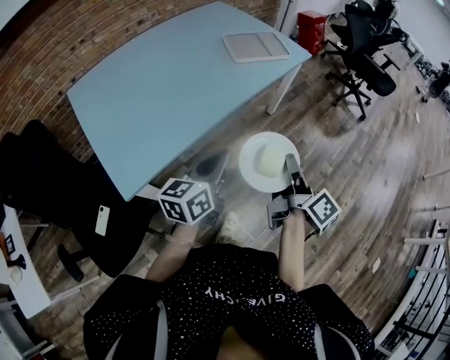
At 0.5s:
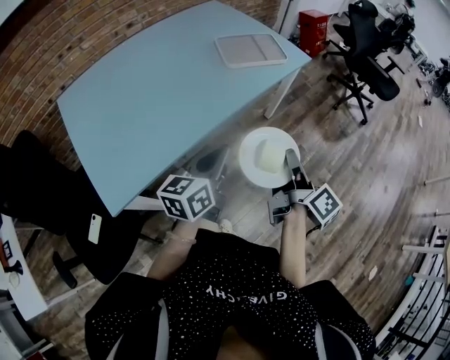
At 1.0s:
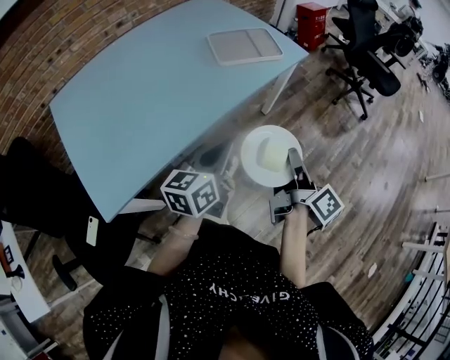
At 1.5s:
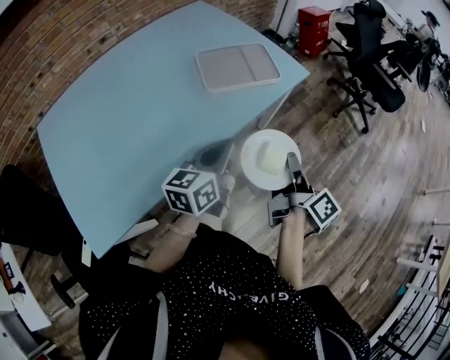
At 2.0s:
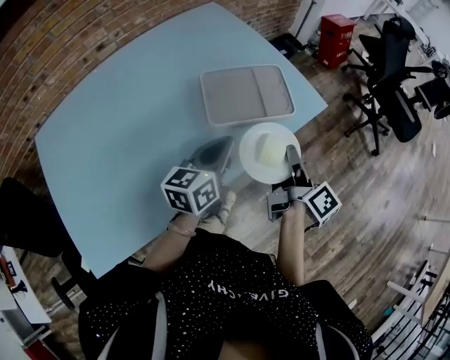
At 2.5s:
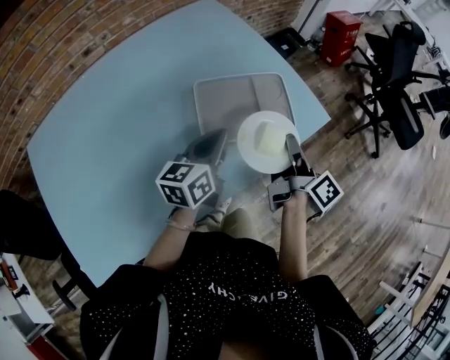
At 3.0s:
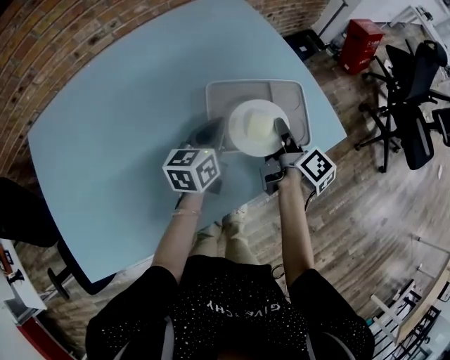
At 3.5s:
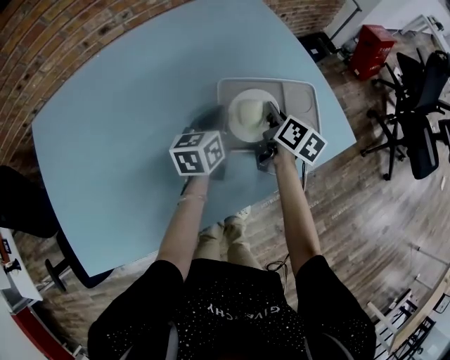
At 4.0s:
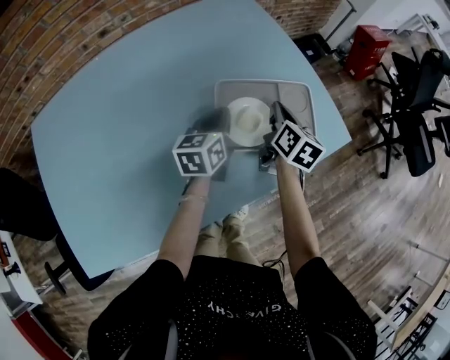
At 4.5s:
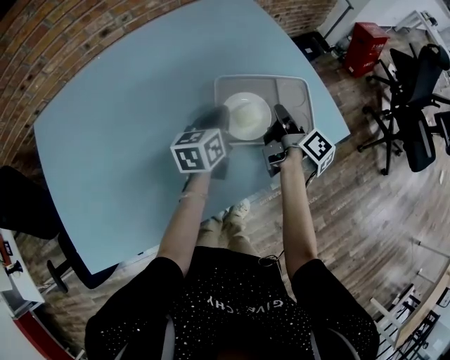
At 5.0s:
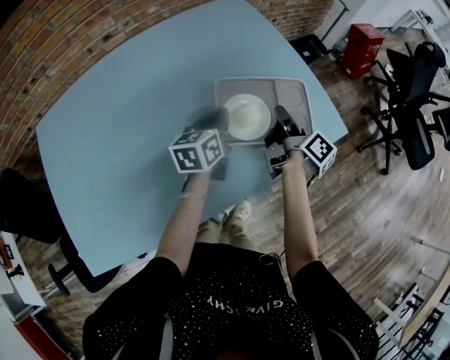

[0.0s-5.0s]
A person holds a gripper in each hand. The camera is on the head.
0.0s to 2.5s: The two grippers travel together, forward, about 60 cm.
2.5s to 5.0s: The right gripper is displaced forward and to the left by some 15 cm. The left gripper is displaced forward, to the left and downward by approximately 10 cm.

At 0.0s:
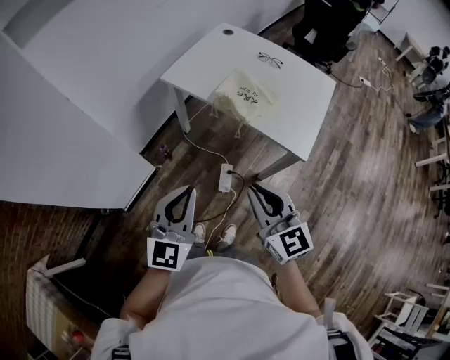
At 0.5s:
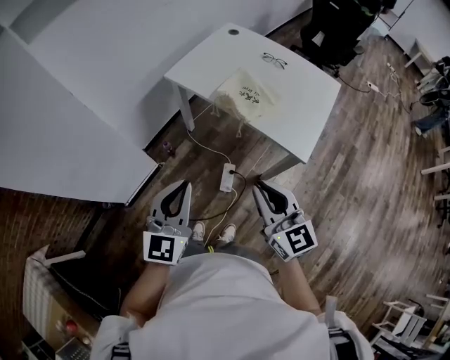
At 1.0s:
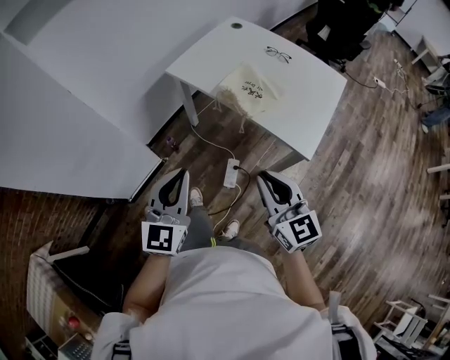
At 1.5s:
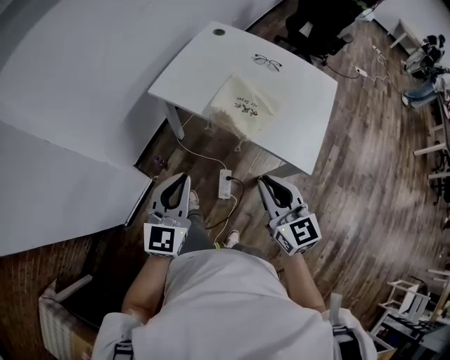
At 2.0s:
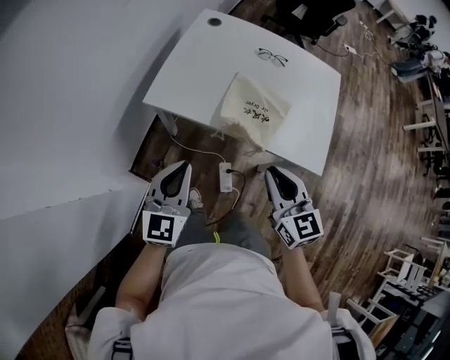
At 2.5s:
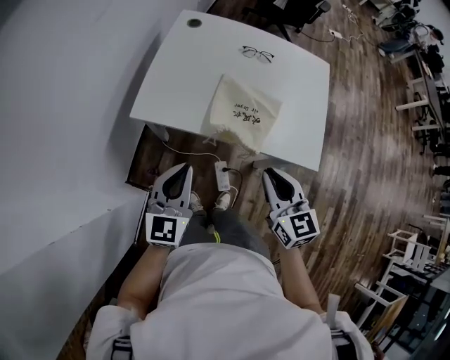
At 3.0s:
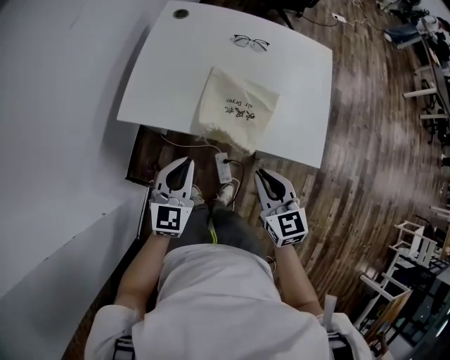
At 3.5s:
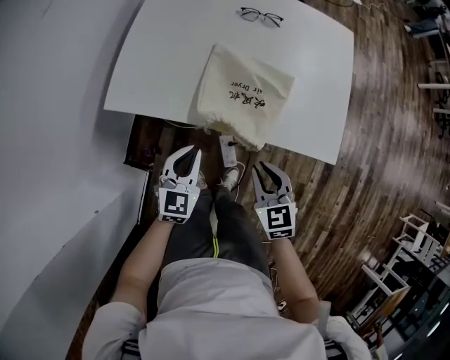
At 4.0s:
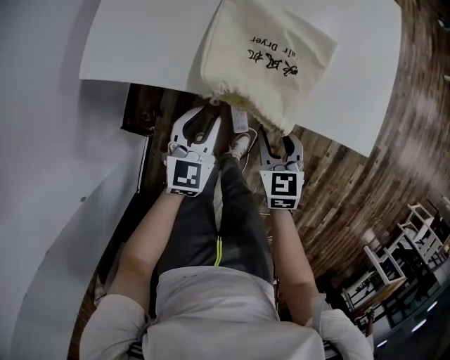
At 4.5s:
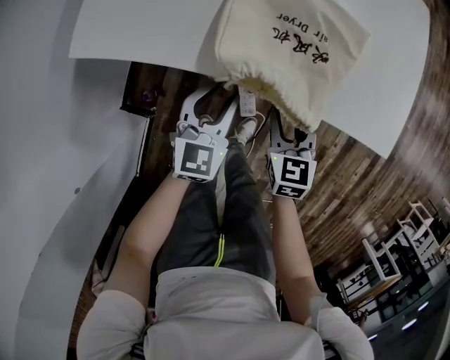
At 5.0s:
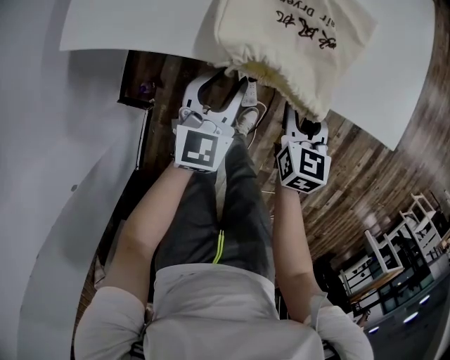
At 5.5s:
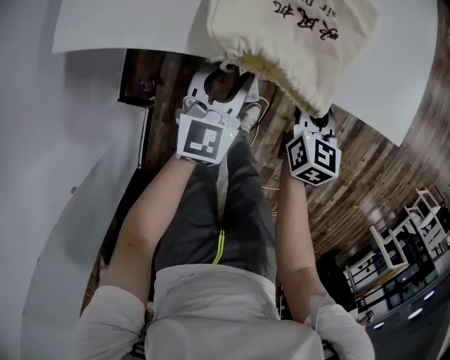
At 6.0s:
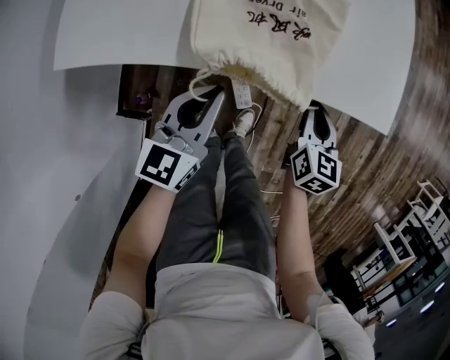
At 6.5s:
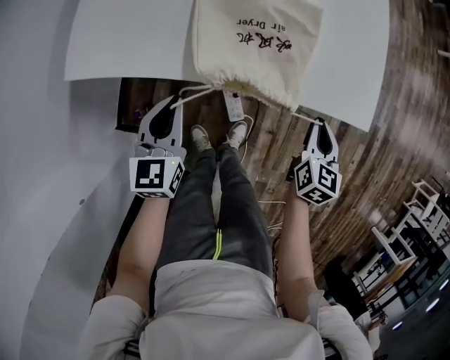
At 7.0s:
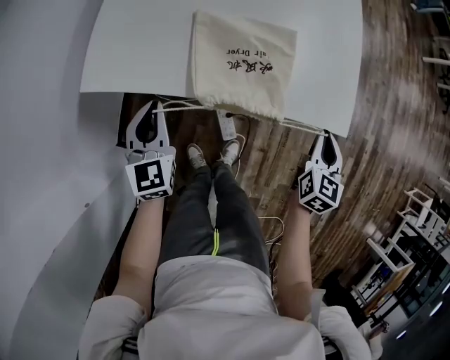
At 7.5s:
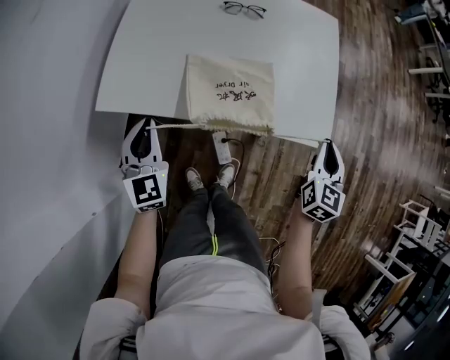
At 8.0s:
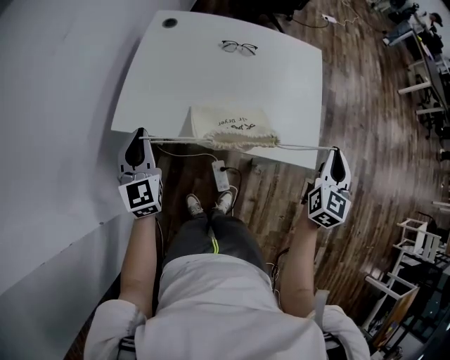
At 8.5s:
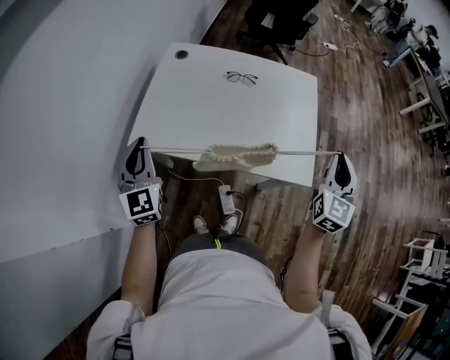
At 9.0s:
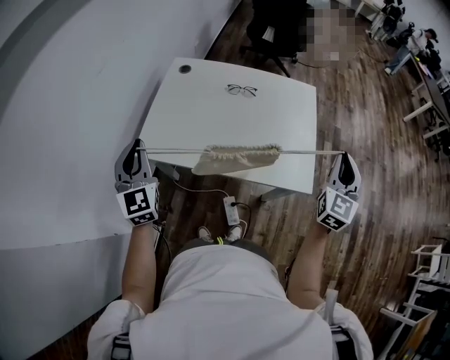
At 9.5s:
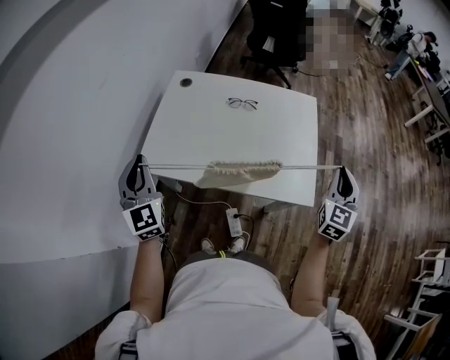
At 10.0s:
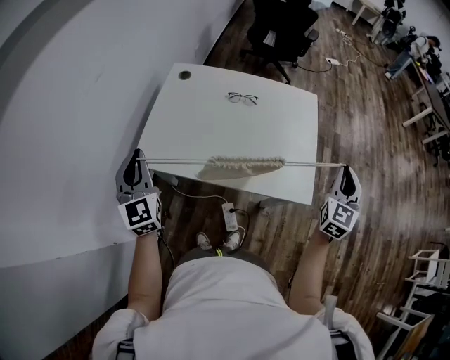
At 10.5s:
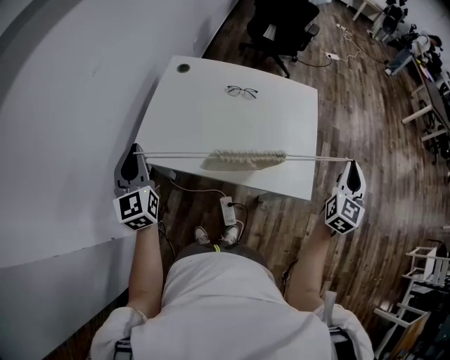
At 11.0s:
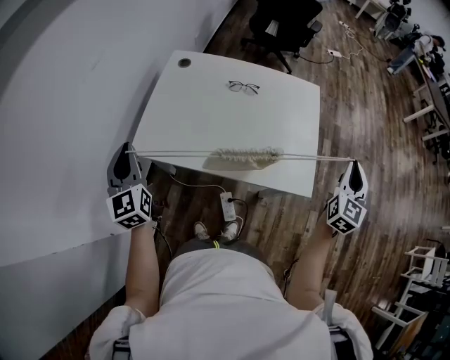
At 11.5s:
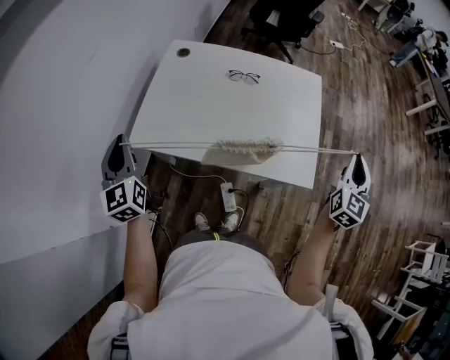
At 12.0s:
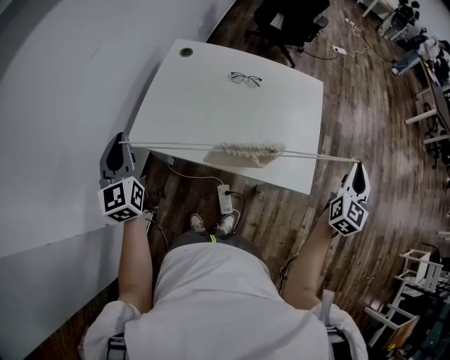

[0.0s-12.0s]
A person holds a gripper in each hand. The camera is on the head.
0.0s to 2.0s: The two grippers go approximately 30 cm forward. The right gripper changes its angle by roughly 20 degrees.
2.0s to 4.0s: The right gripper heads downward, covering approximately 35 cm, swivels some 30 degrees, and opens up, while the left gripper heads downward and forward, covering about 35 cm, swivels approximately 20 degrees, and opens.
4.0s to 6.0s: The right gripper shifts roughly 10 cm to the right, turns by roughly 30 degrees, and closes. Meanwhile the left gripper changes its angle by some 20 degrees, and closes its fingers.
6.0s to 8.0s: The right gripper heads upward, covering approximately 35 cm, and rotates about 30 degrees. The left gripper is displaced upward and to the left by roughly 30 cm, and swivels roughly 50 degrees.
8.0s to 10.0s: The left gripper shifts some 15 cm upward; the right gripper heads upward and to the right, covering about 10 cm.
10.0s to 12.0s: The grippers stay close to where they were, moving slightly.

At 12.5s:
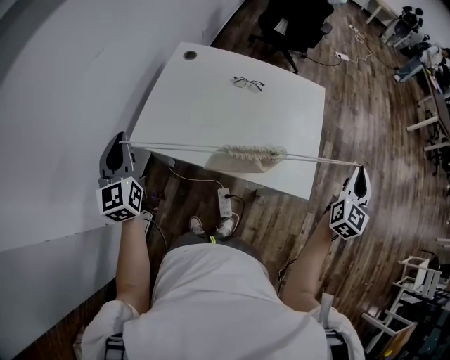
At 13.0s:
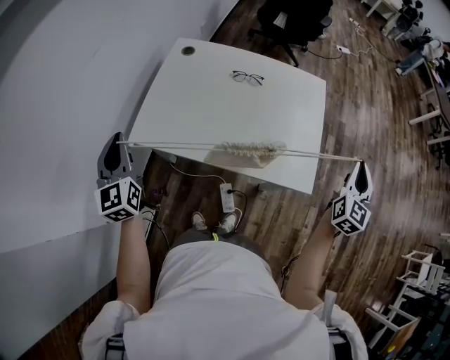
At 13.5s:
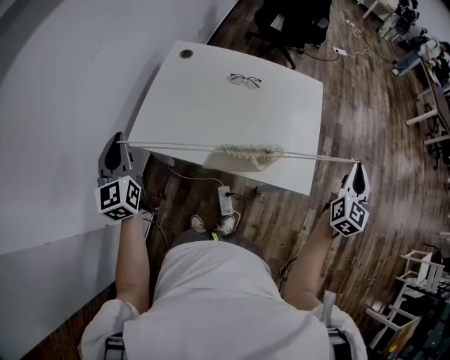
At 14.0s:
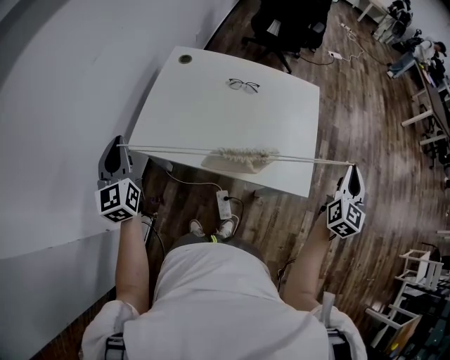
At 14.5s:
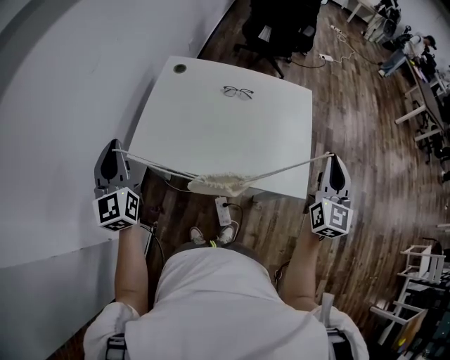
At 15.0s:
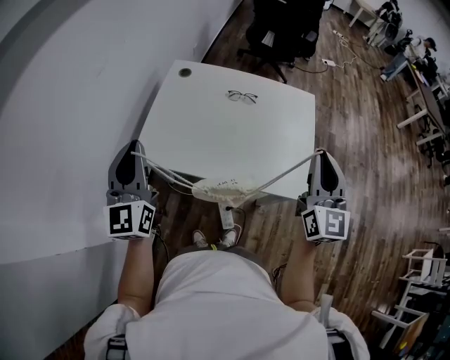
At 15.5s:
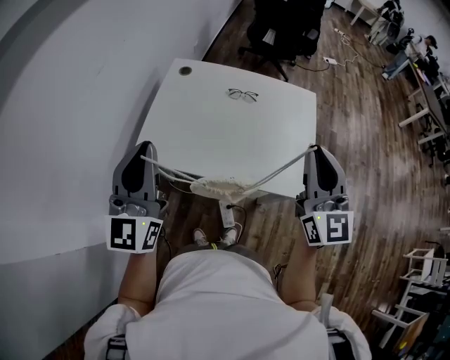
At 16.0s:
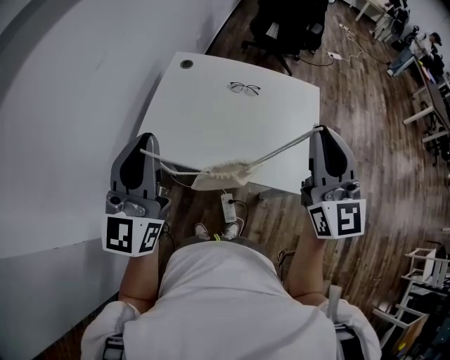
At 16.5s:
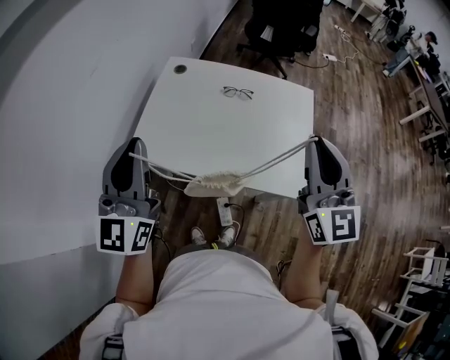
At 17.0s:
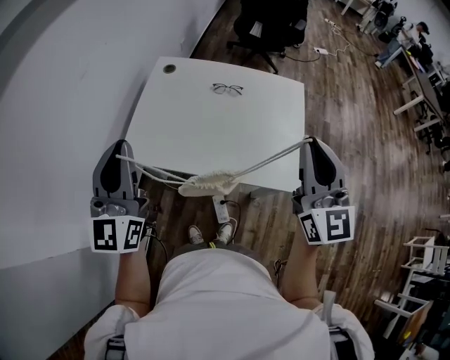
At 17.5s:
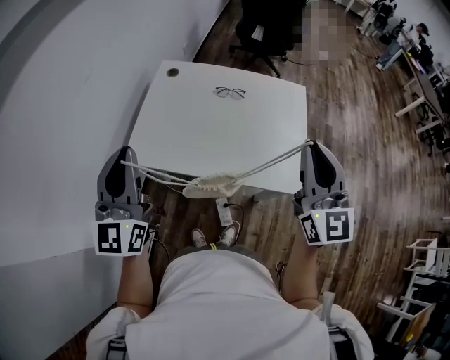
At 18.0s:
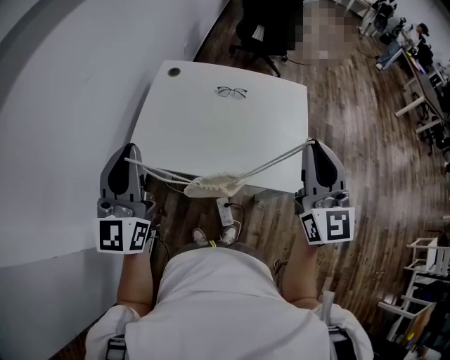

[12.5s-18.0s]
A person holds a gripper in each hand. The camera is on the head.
12.5s to 14.5s: The right gripper goes about 10 cm to the left.
14.5s to 16.0s: The left gripper shifts roughly 15 cm to the right, upward and backward, and turns by approximately 20 degrees. Meanwhile the right gripper heads to the left and upward, covering some 15 cm, and turns by approximately 20 degrees.
16.0s to 18.0s: There are only small adjustments of the grippers.

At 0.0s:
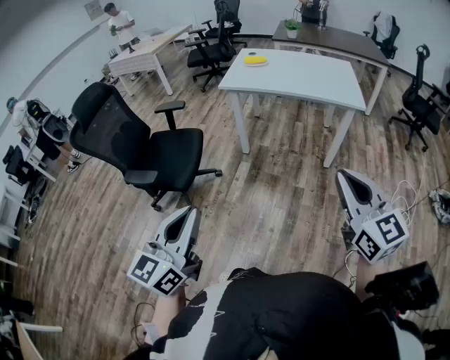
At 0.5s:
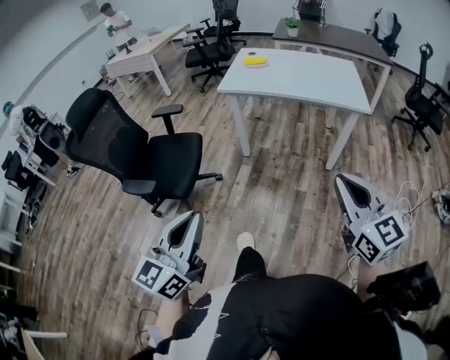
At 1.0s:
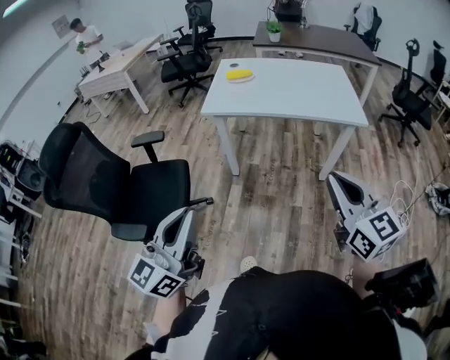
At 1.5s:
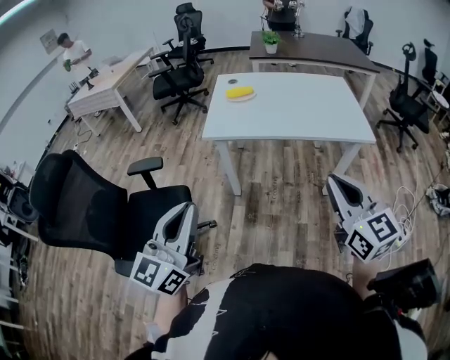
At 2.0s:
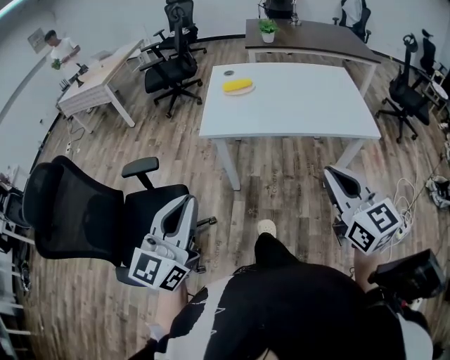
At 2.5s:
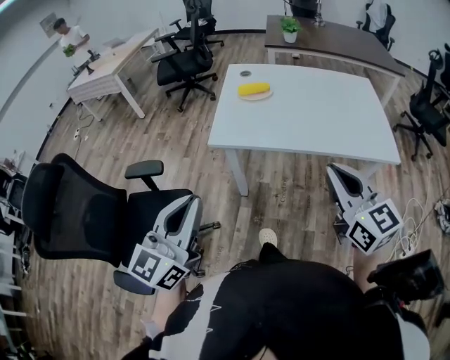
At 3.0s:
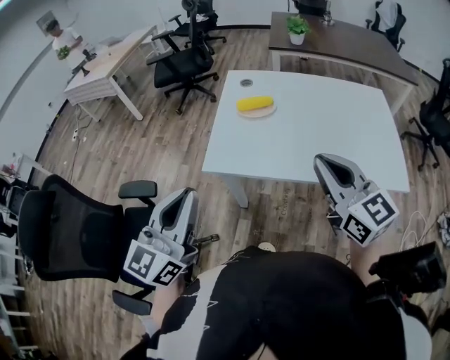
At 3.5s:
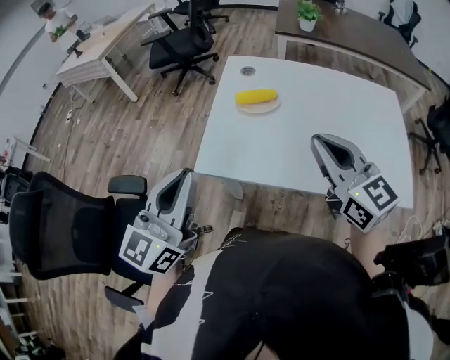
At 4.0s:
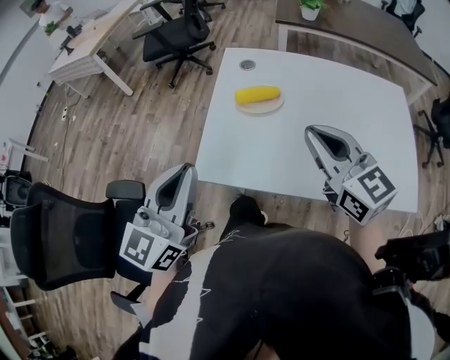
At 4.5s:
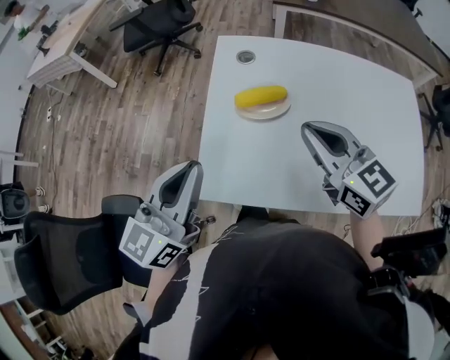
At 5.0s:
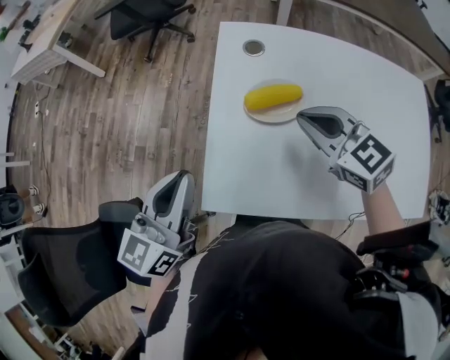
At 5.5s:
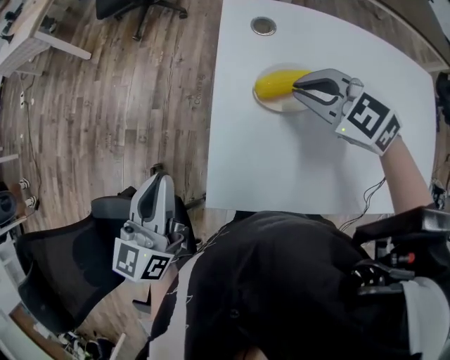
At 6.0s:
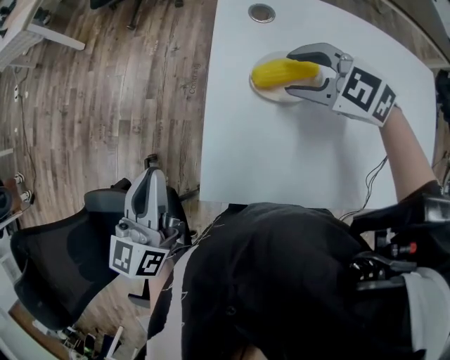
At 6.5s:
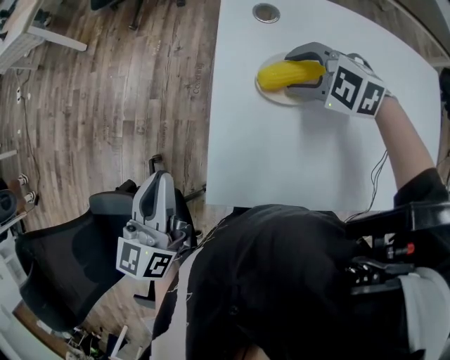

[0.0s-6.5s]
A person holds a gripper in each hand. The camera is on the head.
0.0s to 2.0s: The two grippers go about 40 cm forward.
2.0s to 4.5s: The pair of grippers is taken forward, some 50 cm. The right gripper turns by approximately 20 degrees.
4.5s to 6.5s: The right gripper moves downward and forward, some 25 cm, tips its fingers downward by approximately 40 degrees, and opens its fingers, while the left gripper is displaced downward, to the left and forward by approximately 20 cm, and swivels some 20 degrees.
